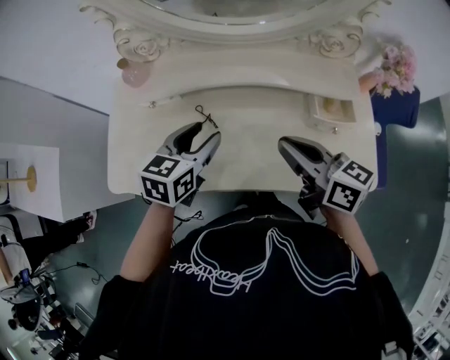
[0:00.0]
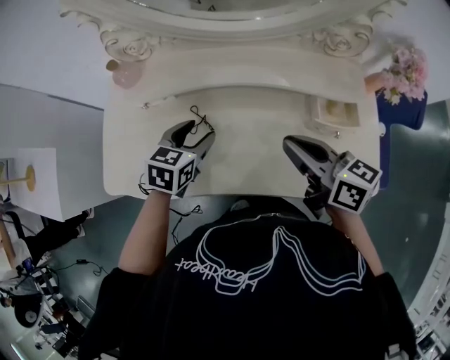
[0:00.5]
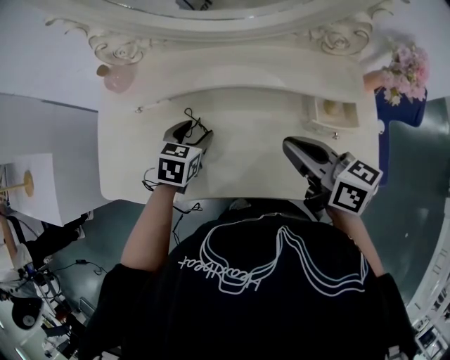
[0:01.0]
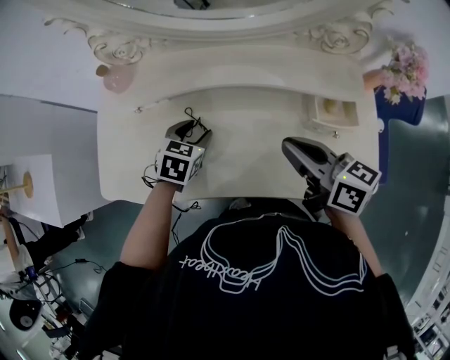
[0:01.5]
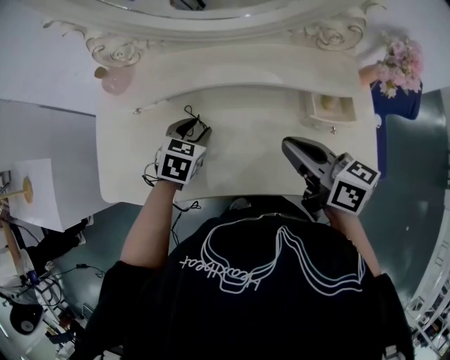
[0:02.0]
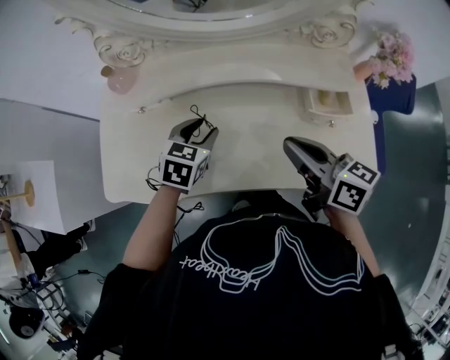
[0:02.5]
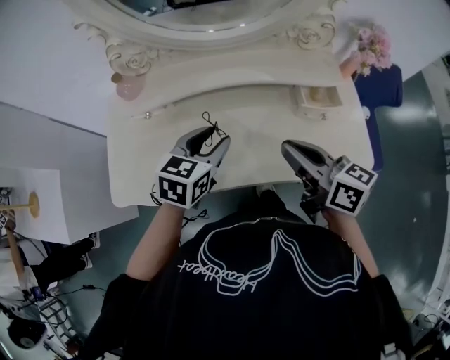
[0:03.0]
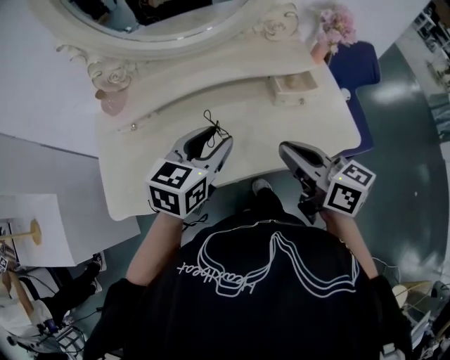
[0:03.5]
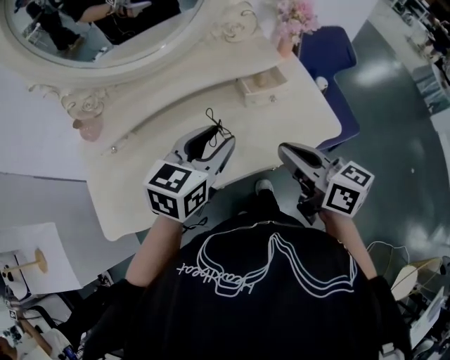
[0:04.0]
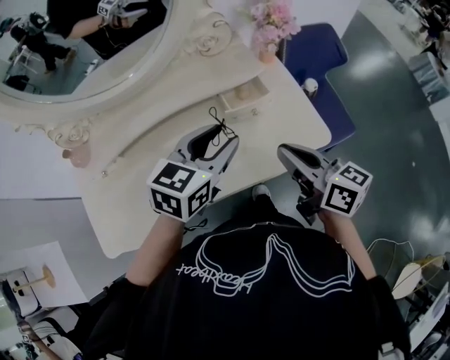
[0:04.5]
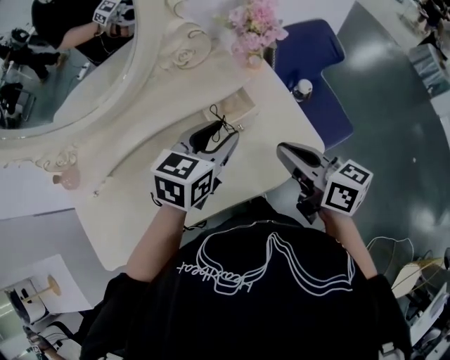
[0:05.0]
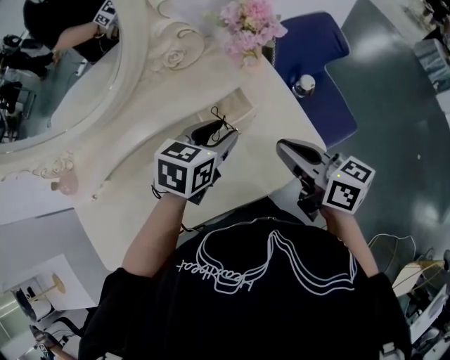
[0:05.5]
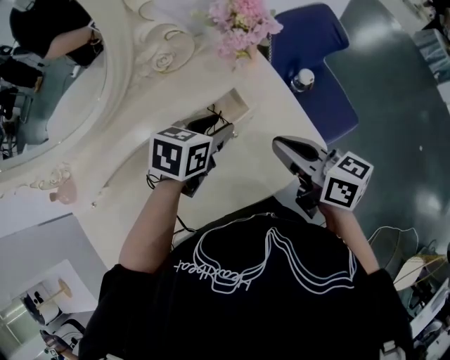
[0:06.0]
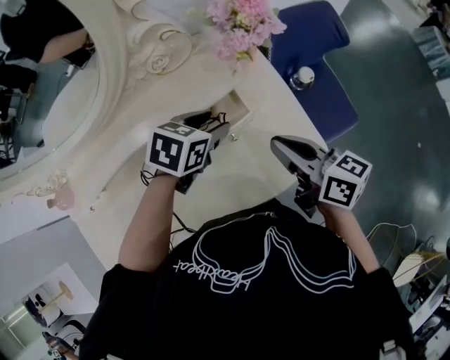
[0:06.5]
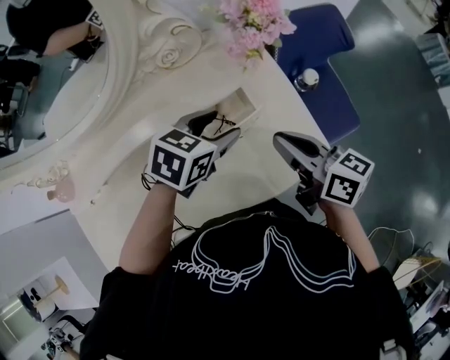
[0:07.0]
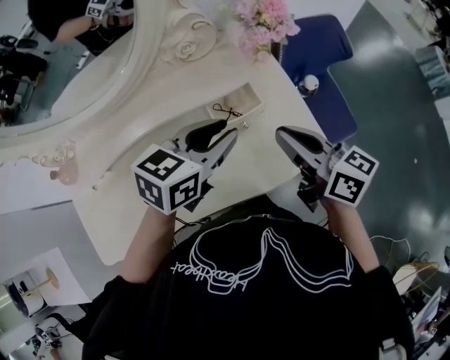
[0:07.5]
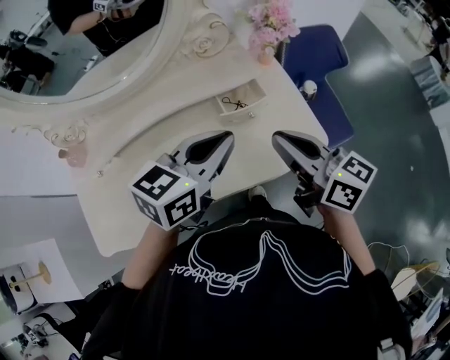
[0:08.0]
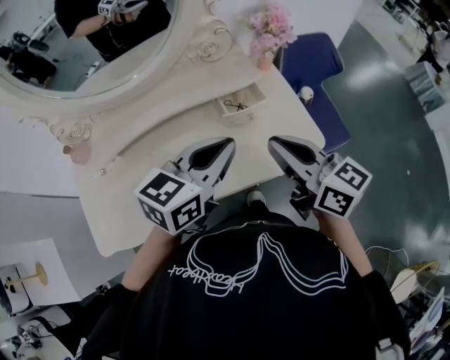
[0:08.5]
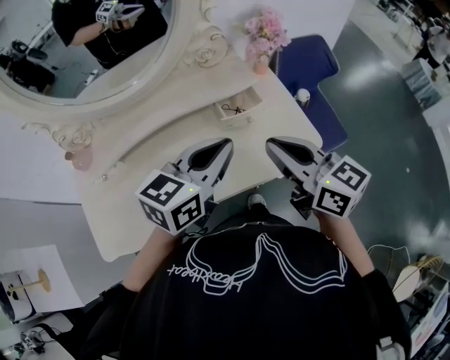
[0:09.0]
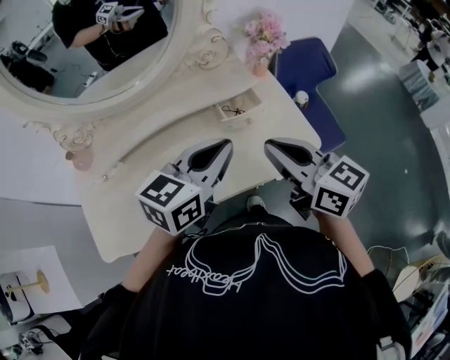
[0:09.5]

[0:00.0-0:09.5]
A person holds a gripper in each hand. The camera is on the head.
0:00.0 to 0:02.0: The left gripper travels downward and forward by about 15 cm, and changes its angle by some 20 degrees.
0:02.0 to 0:04.0: The left gripper shifts by some 30 cm, and rotates approximately 40 degrees. Meanwhile the right gripper ends up some 15 cm from where it was, and changes its angle by approximately 20 degrees.
0:04.0 to 0:05.5: The right gripper shifts roughly 20 cm forward and to the right, while the left gripper is displaced forward, to the right and downward by about 25 cm.
0:05.5 to 0:07.5: The left gripper moves upward, roughly 5 cm.
0:07.5 to 0:09.5: The right gripper goes roughly 15 cm backward, upward and to the left, while the left gripper is displaced backward and upward by about 15 cm, and closes.

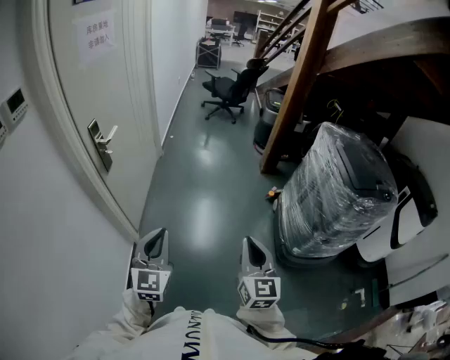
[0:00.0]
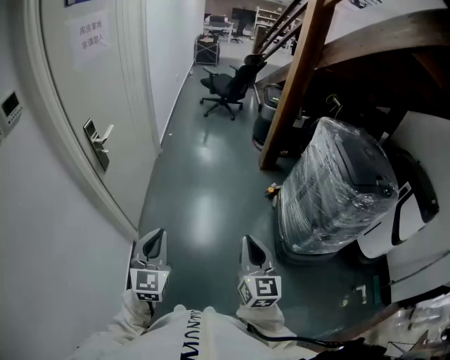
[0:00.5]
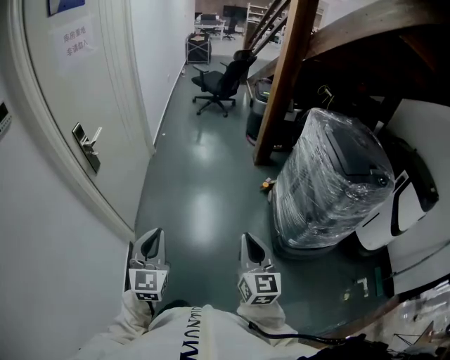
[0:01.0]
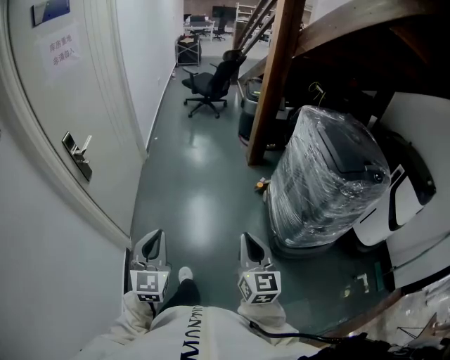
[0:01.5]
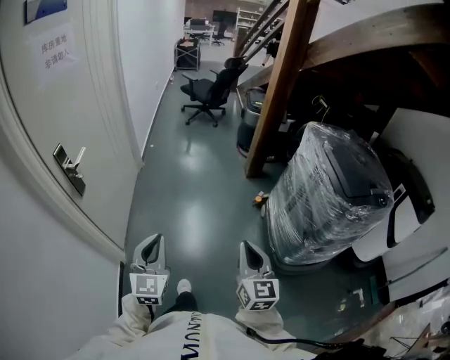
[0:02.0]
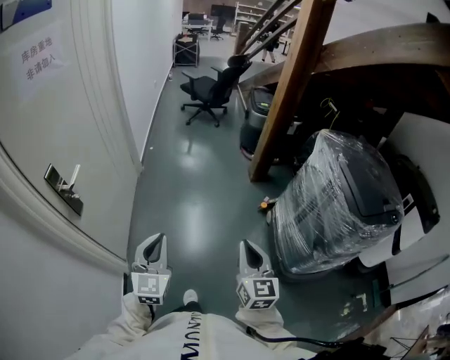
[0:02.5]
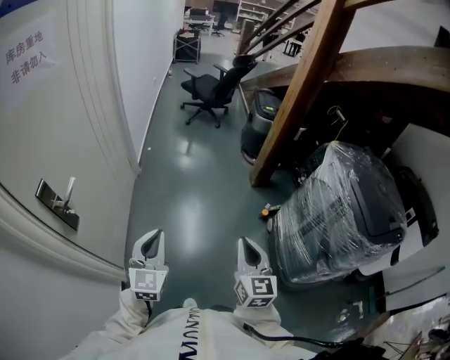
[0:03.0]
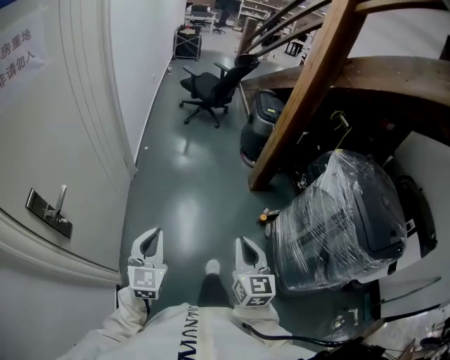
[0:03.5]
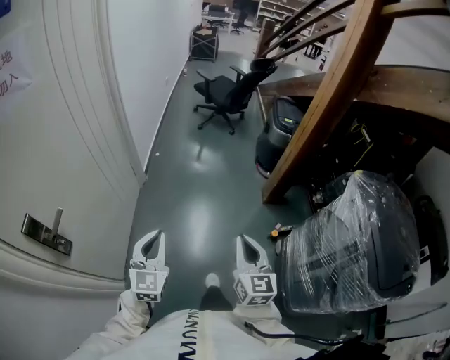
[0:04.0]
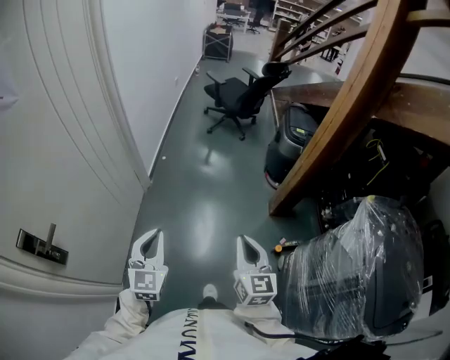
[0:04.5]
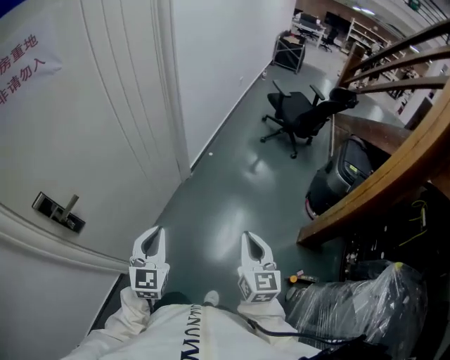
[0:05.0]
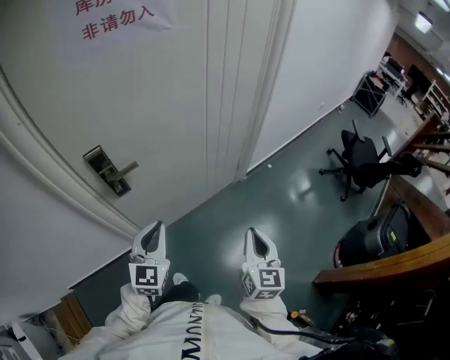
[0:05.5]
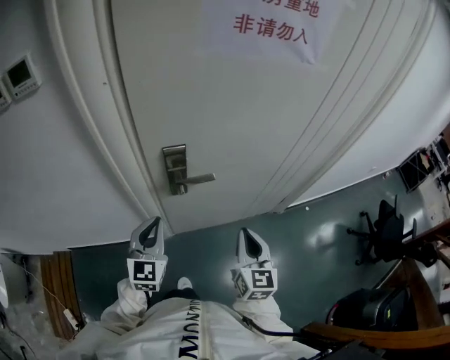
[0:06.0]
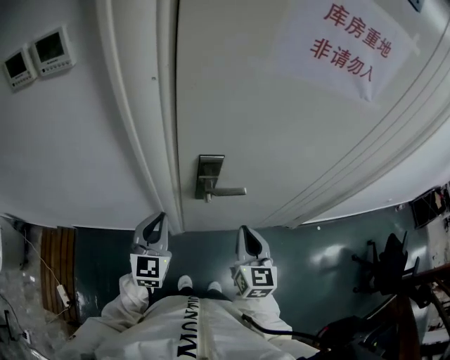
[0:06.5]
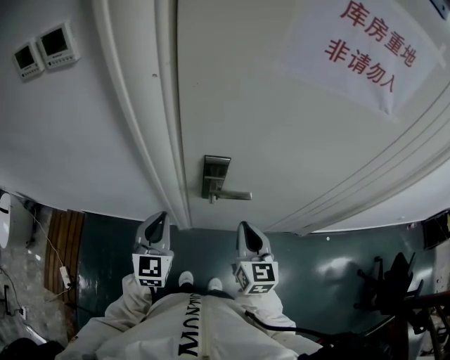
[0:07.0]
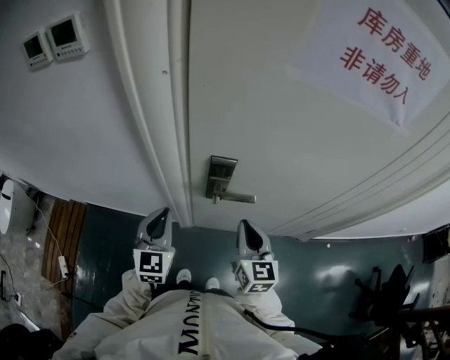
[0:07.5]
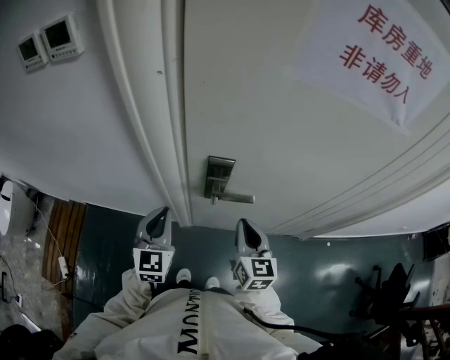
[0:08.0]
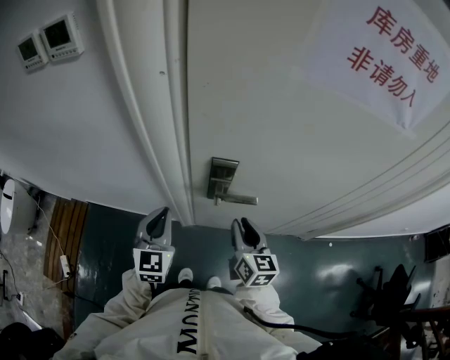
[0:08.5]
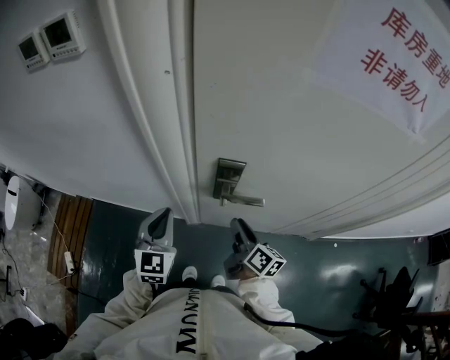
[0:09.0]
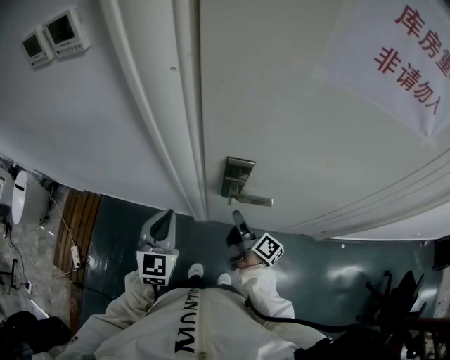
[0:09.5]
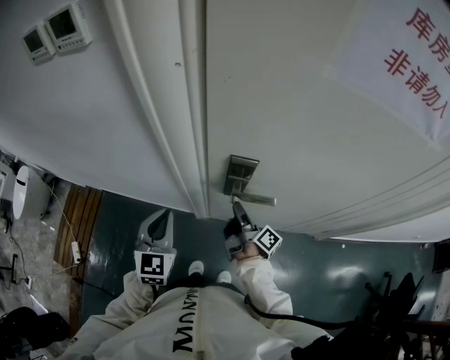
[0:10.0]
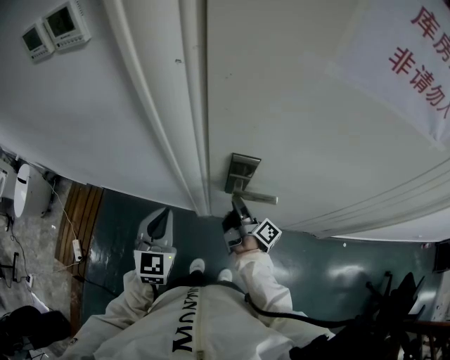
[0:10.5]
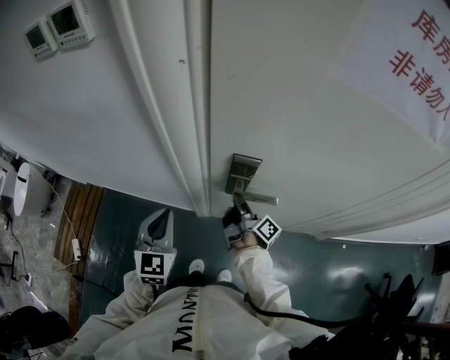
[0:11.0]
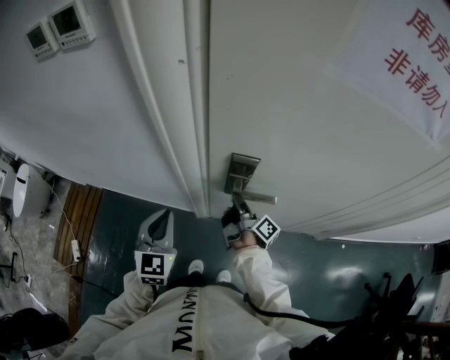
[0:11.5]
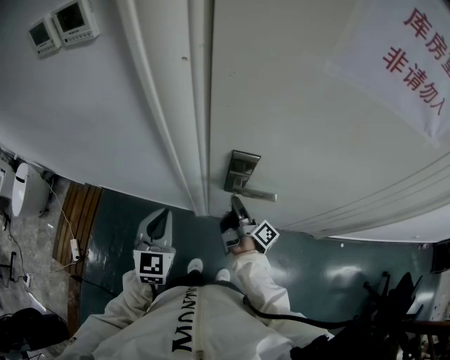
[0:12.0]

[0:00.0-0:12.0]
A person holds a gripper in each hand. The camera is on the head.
0:00.0 to 0:02.0: The two grippers go some 10 cm forward and to the right.
0:02.0 to 0:04.0: Both grippers move forward, some 35 cm.
0:04.0 to 0:06.0: The left gripper shifts by approximately 35 cm, and turns by about 70 degrees, while the right gripper moves about 40 cm, and swivels approximately 70 degrees.
0:06.0 to 0:08.0: The left gripper shifts about 5 cm to the left. Meanwhile the right gripper heads forward and to the left, covering approximately 15 cm, and swivels approximately 20 degrees.
0:08.0 to 0:10.0: The right gripper moves downward and forward, about 15 cm, rolls clockwise, seen from behind, by some 80 degrees, and opens up.
0:10.0 to 0:12.0: The grippers stay close to where they were, moving slightly.

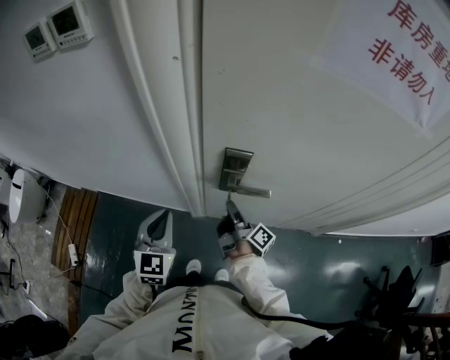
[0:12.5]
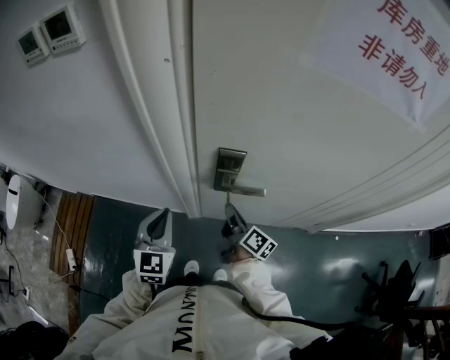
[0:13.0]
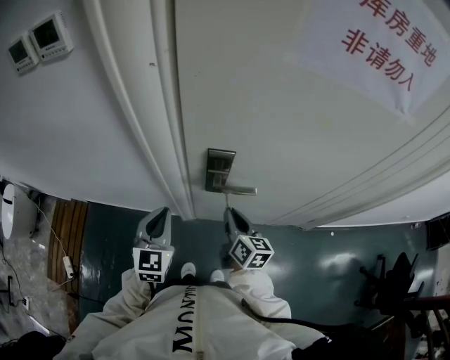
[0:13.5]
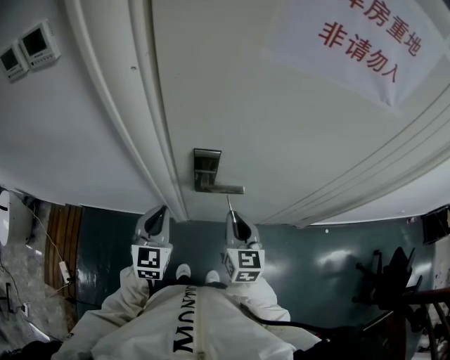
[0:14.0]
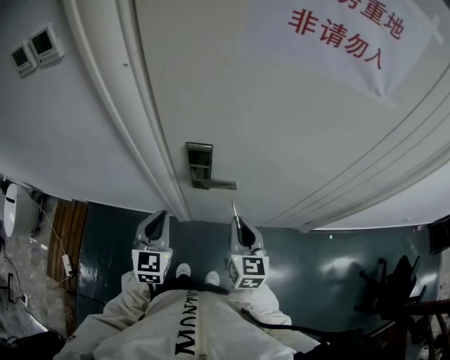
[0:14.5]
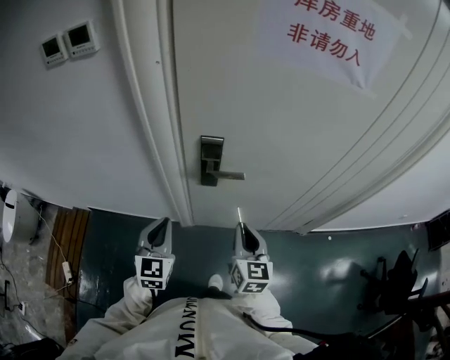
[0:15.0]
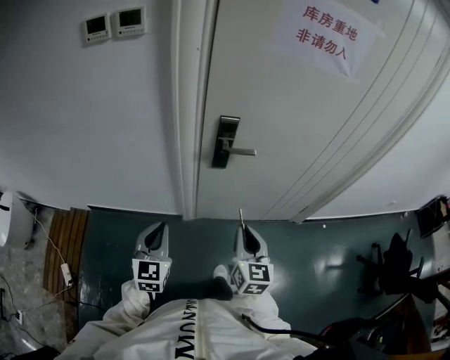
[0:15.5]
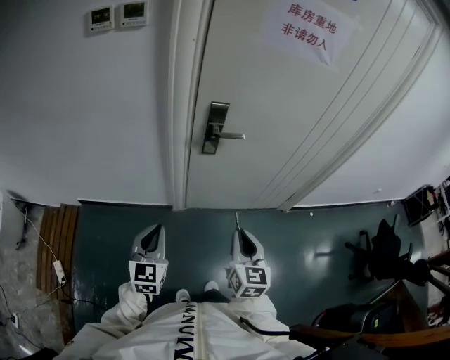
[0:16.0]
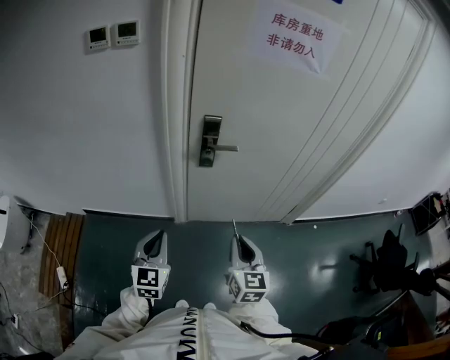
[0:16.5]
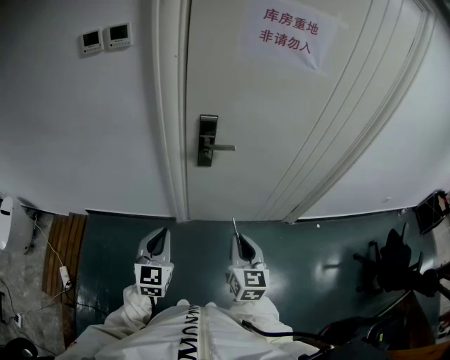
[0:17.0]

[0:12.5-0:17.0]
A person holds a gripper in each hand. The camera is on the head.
0:12.5 to 0:14.5: The left gripper moves to the right, about 5 cm, while the right gripper moves upward, backward and to the right, some 15 cm, and twists some 80 degrees counterclockwise, seen from behind.
0:14.5 to 0:17.0: The two grippers go approximately 25 cm backward.

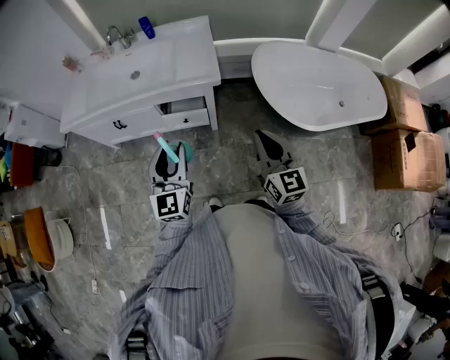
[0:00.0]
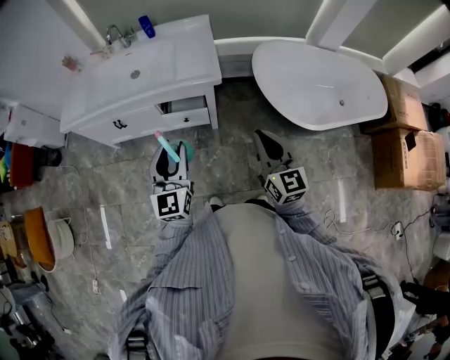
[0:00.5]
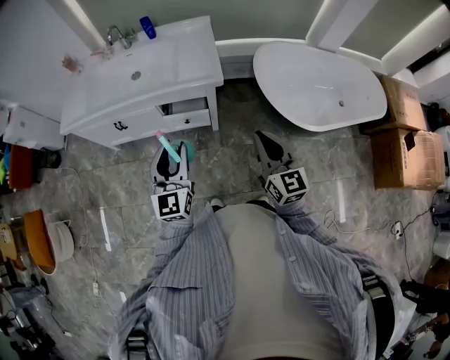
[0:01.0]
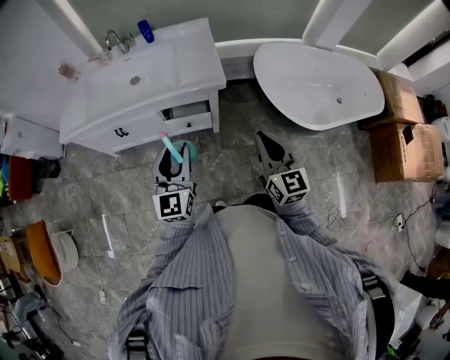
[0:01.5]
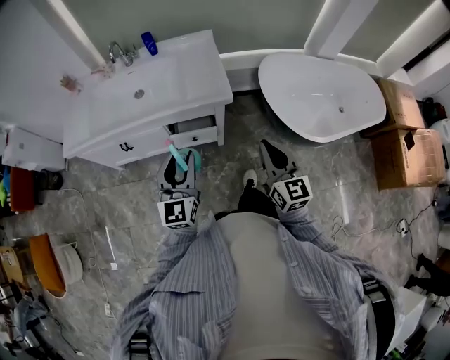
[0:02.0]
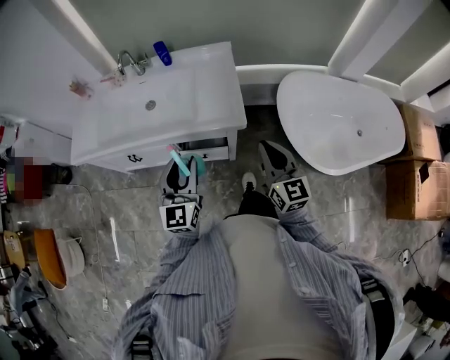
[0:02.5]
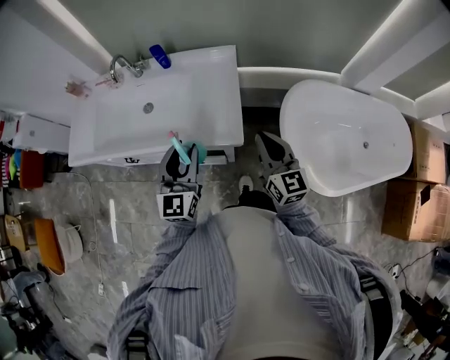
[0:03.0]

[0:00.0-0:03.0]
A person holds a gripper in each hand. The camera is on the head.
0:00.0 to 0:01.5: The right gripper moves approximately 5 cm. The left gripper changes place by some 5 cm.
0:01.5 to 0:03.0: Both grippers move forward, about 30 cm.
